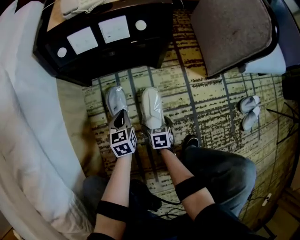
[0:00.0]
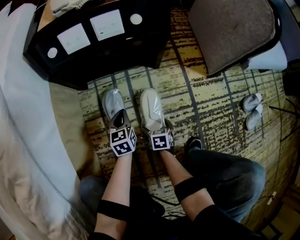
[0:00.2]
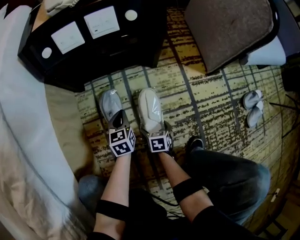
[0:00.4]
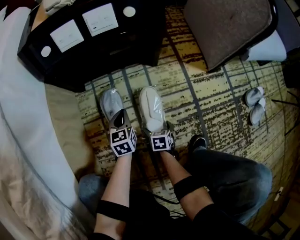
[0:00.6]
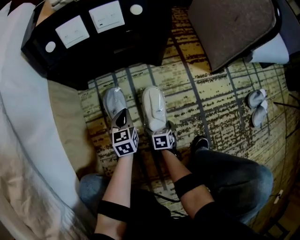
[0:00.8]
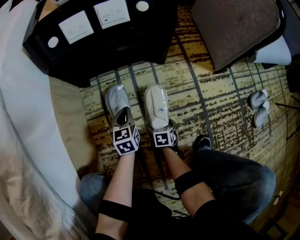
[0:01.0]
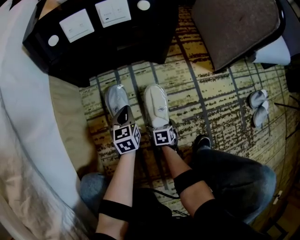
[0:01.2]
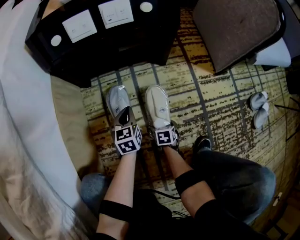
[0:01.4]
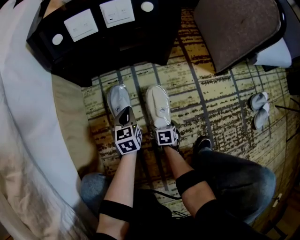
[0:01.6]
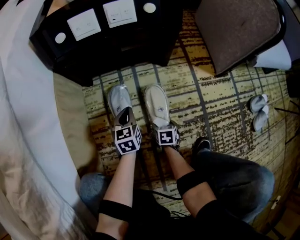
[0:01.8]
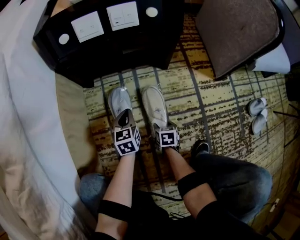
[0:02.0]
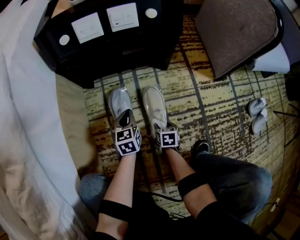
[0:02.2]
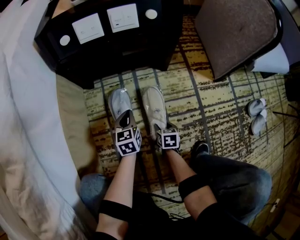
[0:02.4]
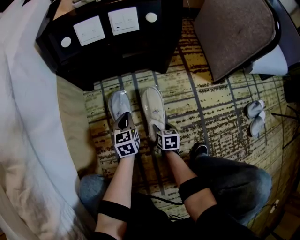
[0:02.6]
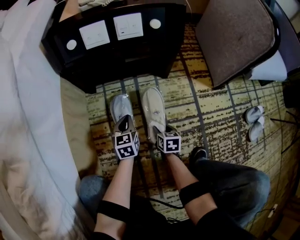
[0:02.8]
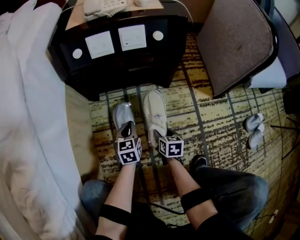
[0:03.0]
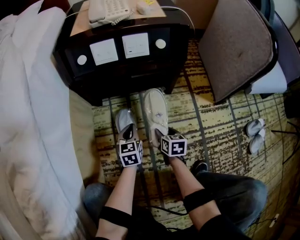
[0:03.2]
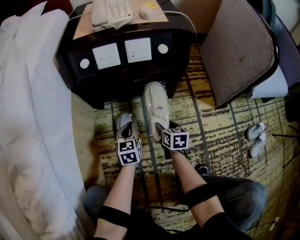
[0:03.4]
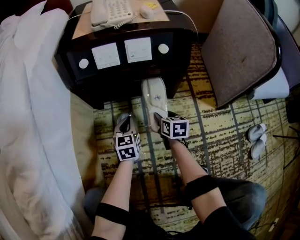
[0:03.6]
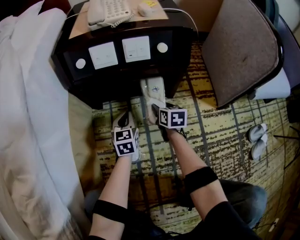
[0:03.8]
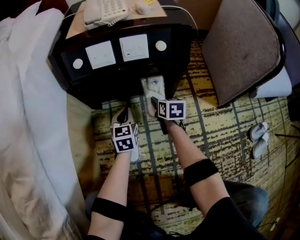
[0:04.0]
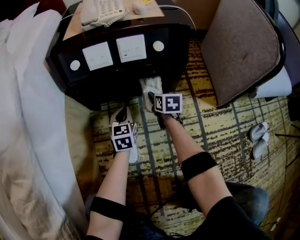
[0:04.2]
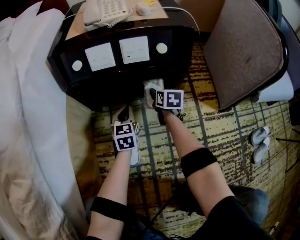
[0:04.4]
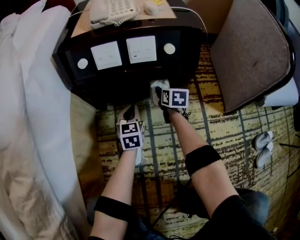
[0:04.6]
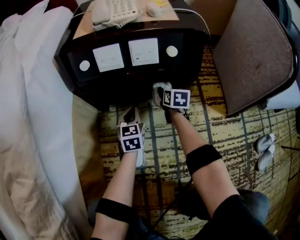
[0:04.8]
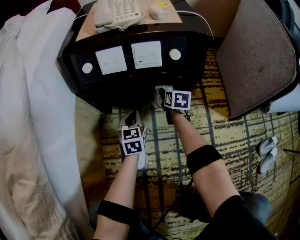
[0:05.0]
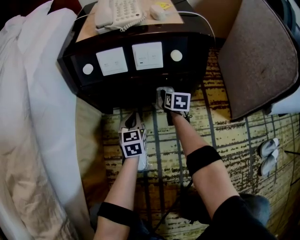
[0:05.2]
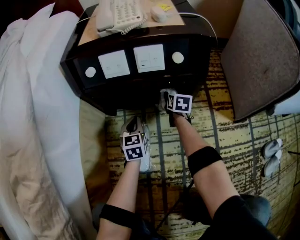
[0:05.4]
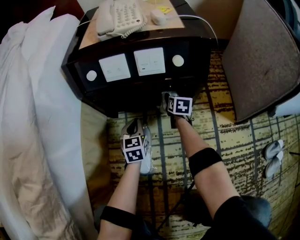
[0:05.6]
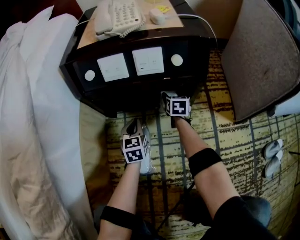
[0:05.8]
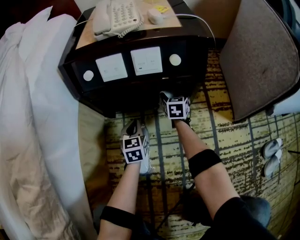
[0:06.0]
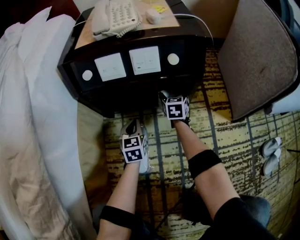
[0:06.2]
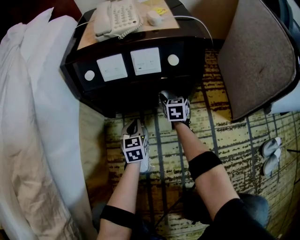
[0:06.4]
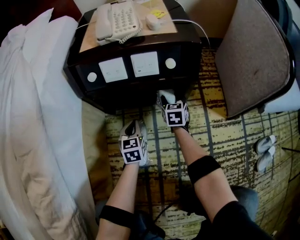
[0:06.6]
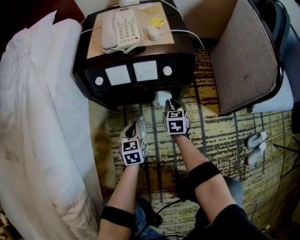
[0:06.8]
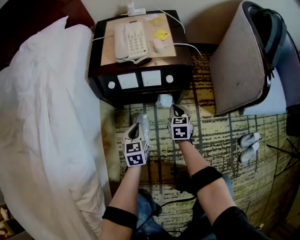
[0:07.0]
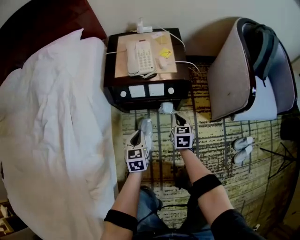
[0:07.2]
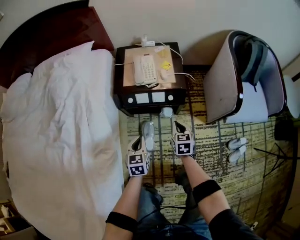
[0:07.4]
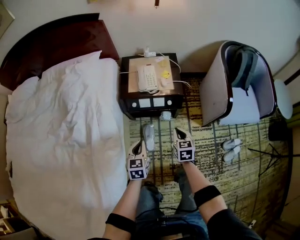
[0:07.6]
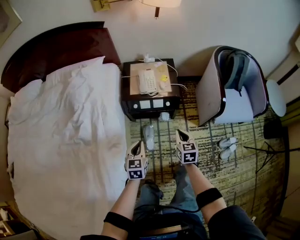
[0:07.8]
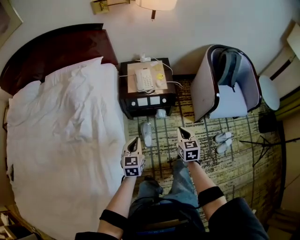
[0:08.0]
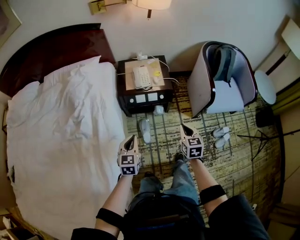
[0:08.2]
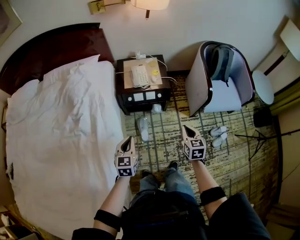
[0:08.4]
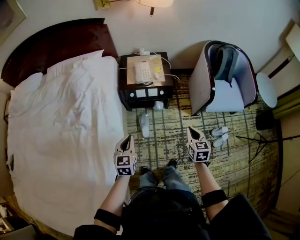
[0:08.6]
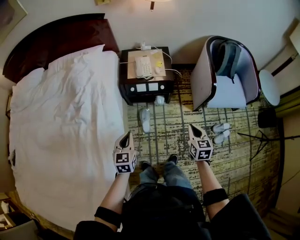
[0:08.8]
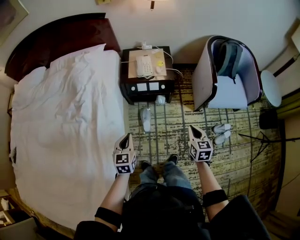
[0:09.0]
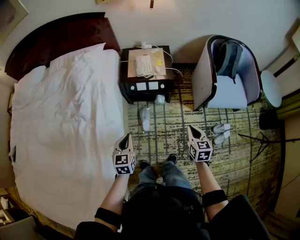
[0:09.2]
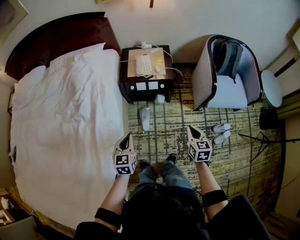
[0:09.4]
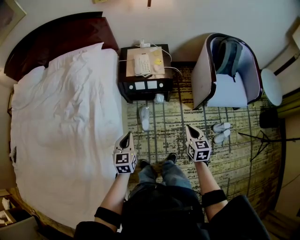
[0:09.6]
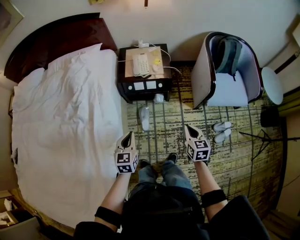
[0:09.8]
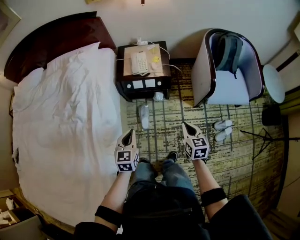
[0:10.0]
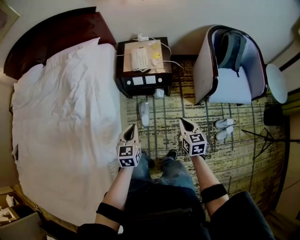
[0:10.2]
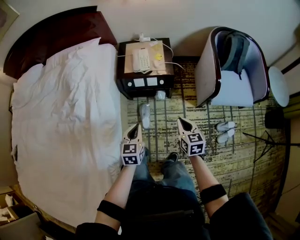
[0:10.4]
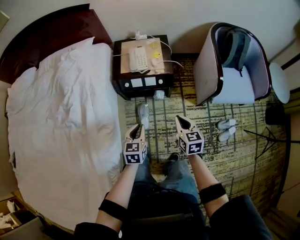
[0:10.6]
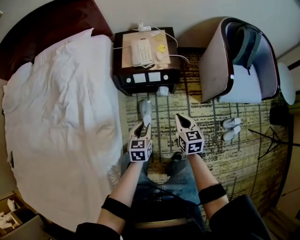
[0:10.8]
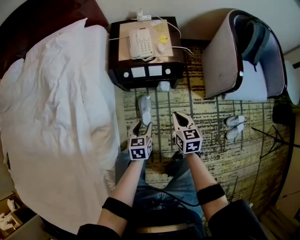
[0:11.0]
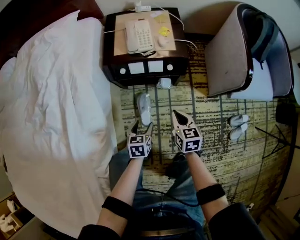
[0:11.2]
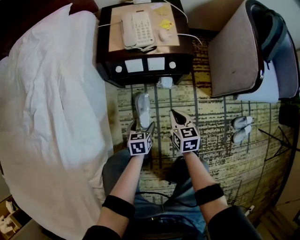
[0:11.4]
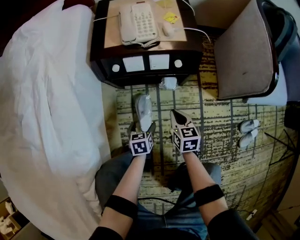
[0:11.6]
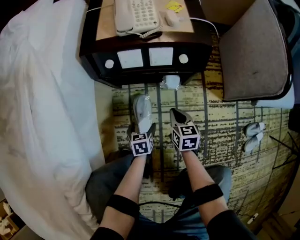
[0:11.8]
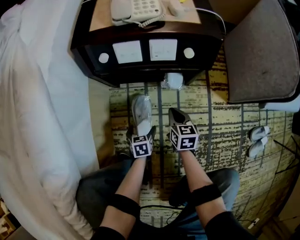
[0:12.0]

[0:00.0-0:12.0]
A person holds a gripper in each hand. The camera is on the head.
0:00.0 to 0:01.6: The right gripper goes some 15 cm downward. Meanwhile the left gripper shifts some 10 cm downward.
0:01.6 to 0:03.0: The right gripper travels upward and forward by approximately 15 cm, and closes its fingers.
0:03.0 to 0:04.4: The left gripper is displaced forward by about 15 cm. Meanwhile the right gripper moves forward, about 25 cm.
0:04.4 to 0:06.0: The right gripper goes roughly 5 cm forward.
0:06.0 to 0:07.6: The left gripper travels upward by about 60 cm. The right gripper heads upward and backward, covering some 60 cm, and closes up.
0:07.6 to 0:09.0: The left gripper travels upward and backward by some 20 cm. The right gripper is displaced backward, upward and to the right by approximately 25 cm.
0:09.0 to 0:10.4: The right gripper shifts approximately 5 cm forward, while the left gripper is displaced to the right and forward by about 10 cm.
0:10.4 to 0:12.0: The grippers both shift downward by about 70 cm. The left gripper swivels roughly 30 degrees, and opens.

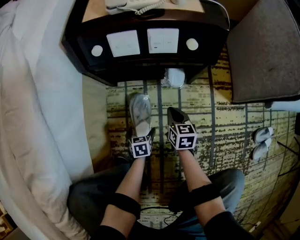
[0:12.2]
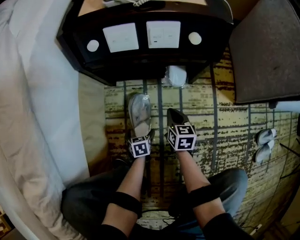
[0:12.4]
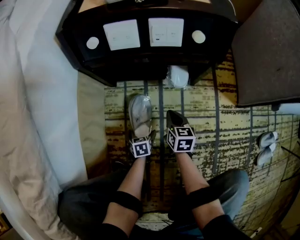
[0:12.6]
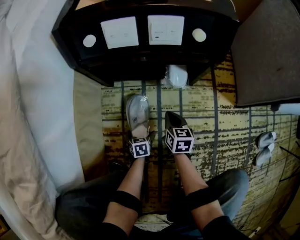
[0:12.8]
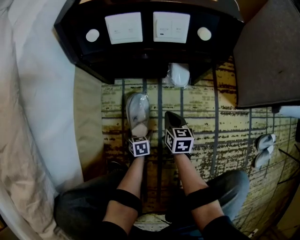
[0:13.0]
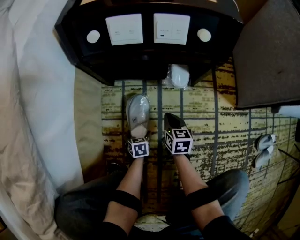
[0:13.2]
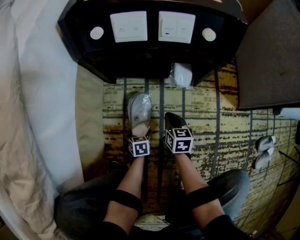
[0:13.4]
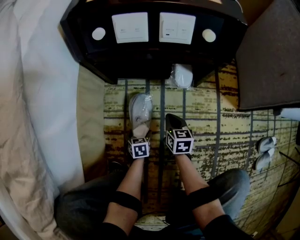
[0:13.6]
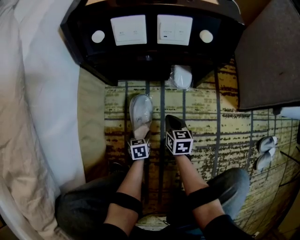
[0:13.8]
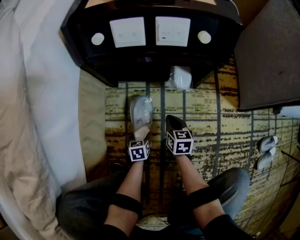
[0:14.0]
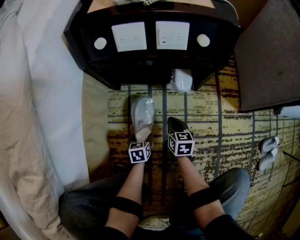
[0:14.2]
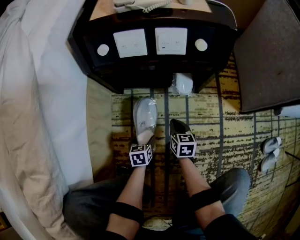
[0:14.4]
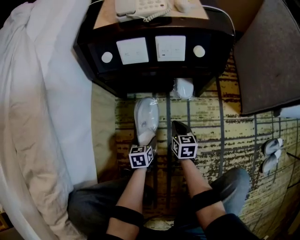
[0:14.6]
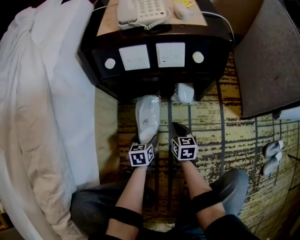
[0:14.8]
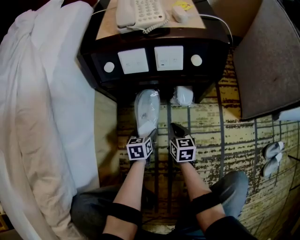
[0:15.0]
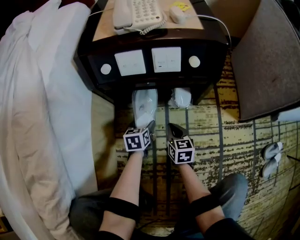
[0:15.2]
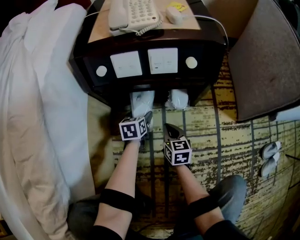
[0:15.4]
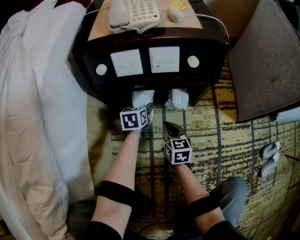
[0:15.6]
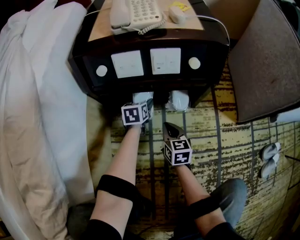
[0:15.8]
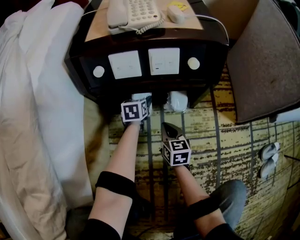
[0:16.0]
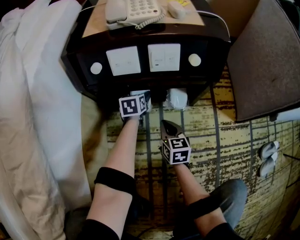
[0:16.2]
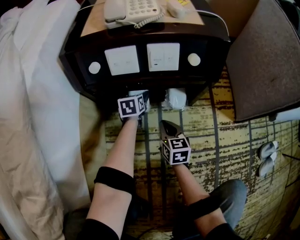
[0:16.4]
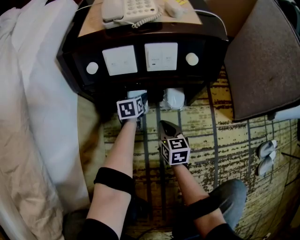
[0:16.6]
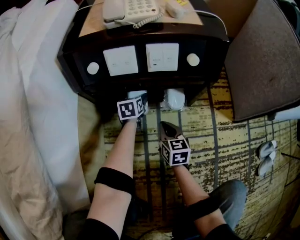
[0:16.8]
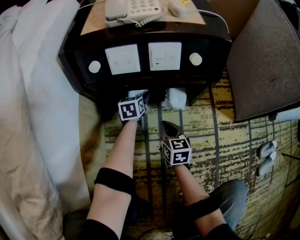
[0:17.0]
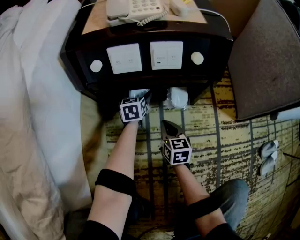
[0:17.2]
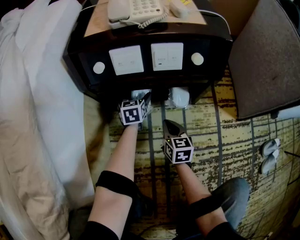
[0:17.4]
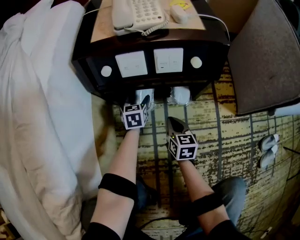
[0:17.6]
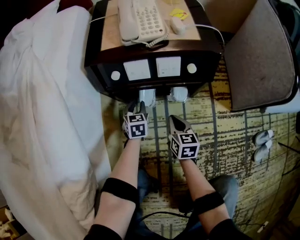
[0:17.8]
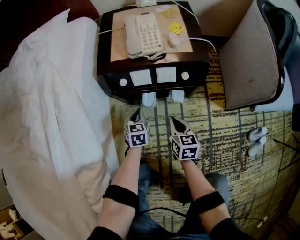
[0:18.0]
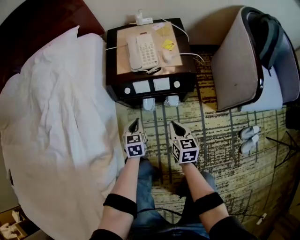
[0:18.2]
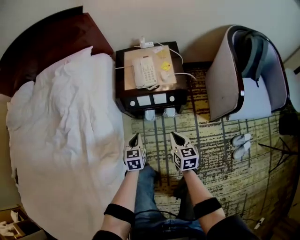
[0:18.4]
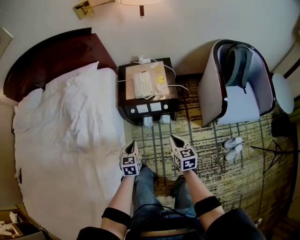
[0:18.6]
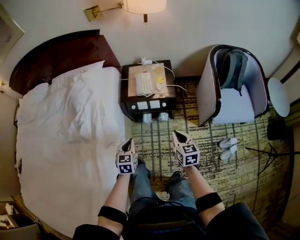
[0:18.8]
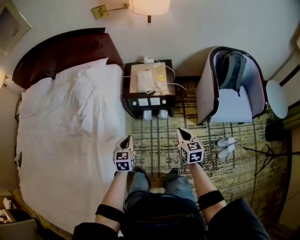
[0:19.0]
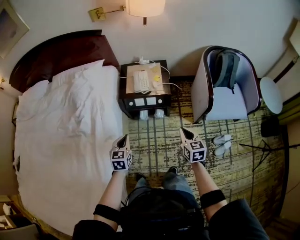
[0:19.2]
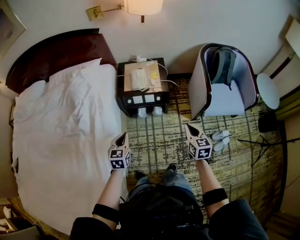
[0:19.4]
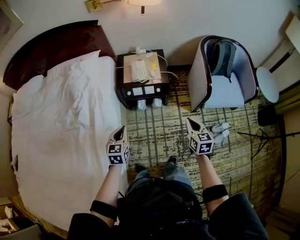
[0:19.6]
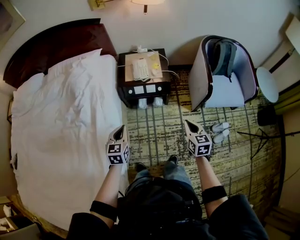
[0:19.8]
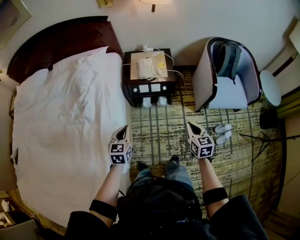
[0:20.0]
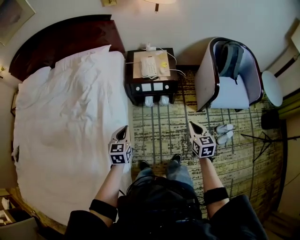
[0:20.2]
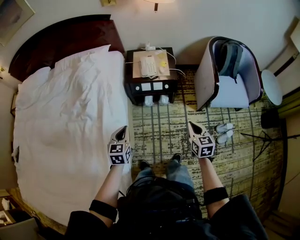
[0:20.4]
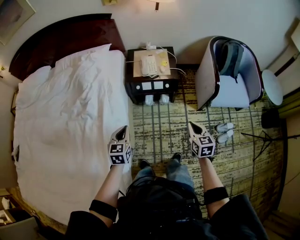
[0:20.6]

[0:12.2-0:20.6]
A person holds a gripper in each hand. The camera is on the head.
0:12.2 to 0:13.6: Both grippers move downward, about 10 cm.
0:13.6 to 0:15.0: The left gripper heads upward and forward, covering approximately 15 cm. The right gripper shifts about 5 cm upward.
0:15.0 to 0:16.4: The left gripper is displaced forward by some 20 cm.
0:16.4 to 0:17.8: The left gripper moves upward and backward, approximately 15 cm, and closes, while the right gripper goes some 15 cm upward.
0:17.8 to 0:19.2: The left gripper shifts some 70 cm upward and backward. Meanwhile the right gripper moves upward, approximately 60 cm.
0:19.2 to 0:20.6: The left gripper shifts roughly 10 cm to the left and backward. The right gripper goes about 10 cm backward.

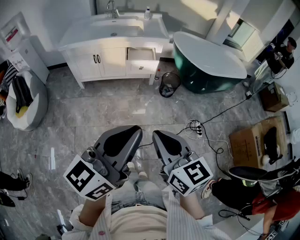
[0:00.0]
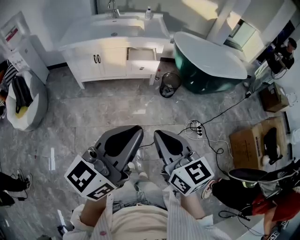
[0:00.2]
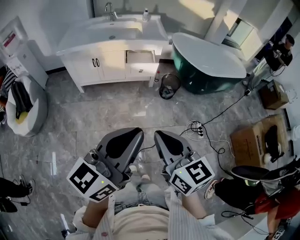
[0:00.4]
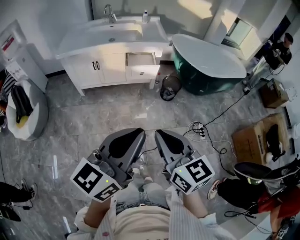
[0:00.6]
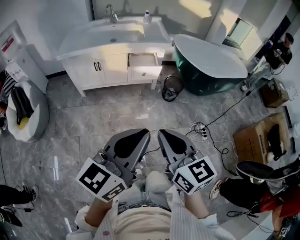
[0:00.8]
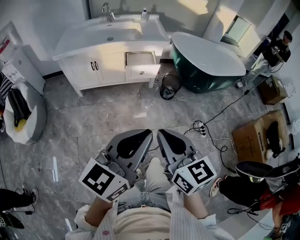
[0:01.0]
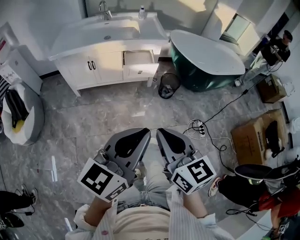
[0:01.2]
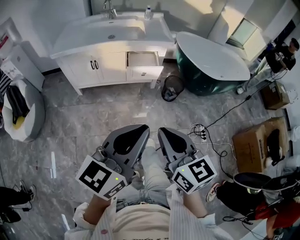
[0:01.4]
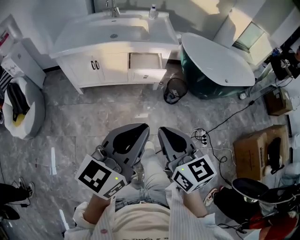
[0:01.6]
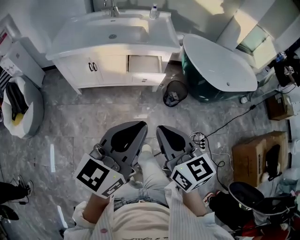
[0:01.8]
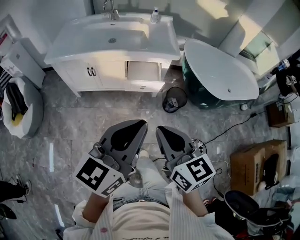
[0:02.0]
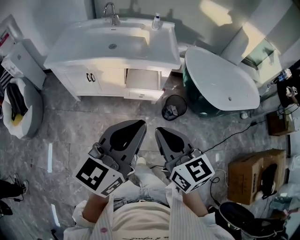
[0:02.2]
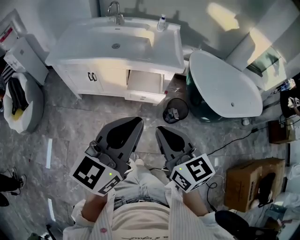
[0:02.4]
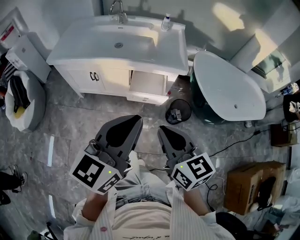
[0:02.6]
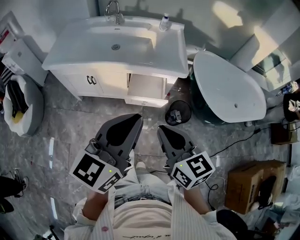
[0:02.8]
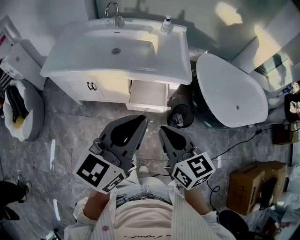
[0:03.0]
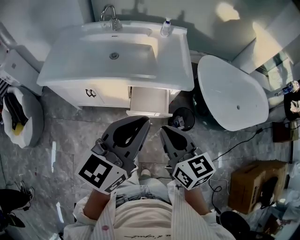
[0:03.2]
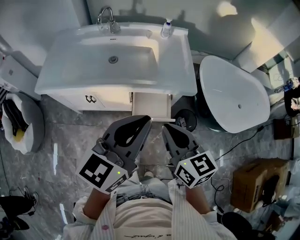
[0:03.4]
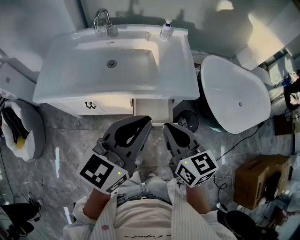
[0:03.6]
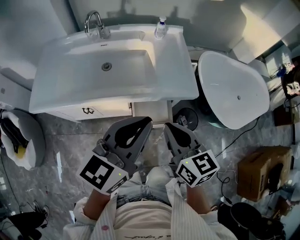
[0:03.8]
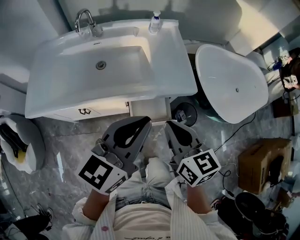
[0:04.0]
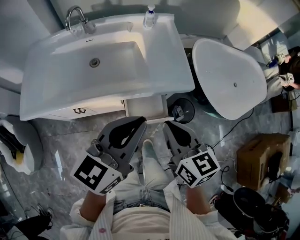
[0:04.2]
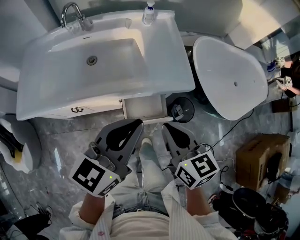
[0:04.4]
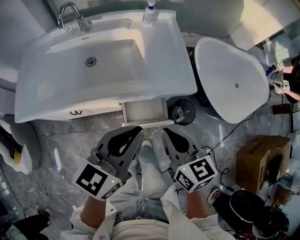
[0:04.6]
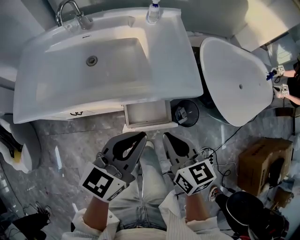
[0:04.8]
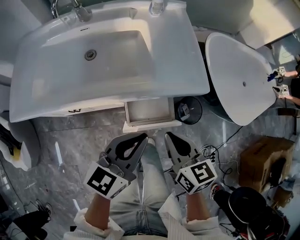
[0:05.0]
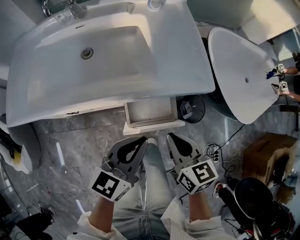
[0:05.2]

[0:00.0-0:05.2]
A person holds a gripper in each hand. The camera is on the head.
0:00.0 to 0:01.8: The two grippers go some 25 cm forward.
0:01.8 to 0:03.4: The grippers both shift forward by roughly 35 cm.
0:03.4 to 0:05.2: The right gripper heads downward and forward, covering approximately 20 cm, while the left gripper moves downward, about 25 cm.
